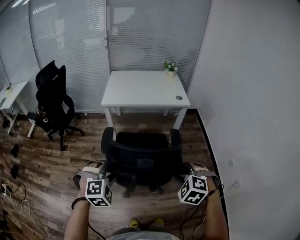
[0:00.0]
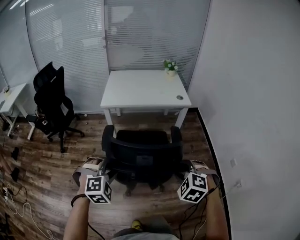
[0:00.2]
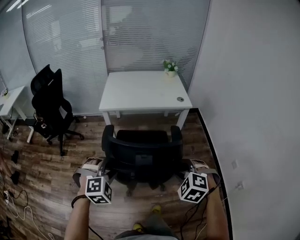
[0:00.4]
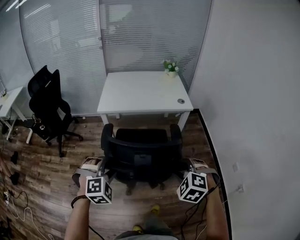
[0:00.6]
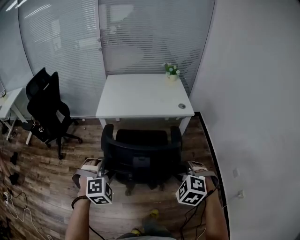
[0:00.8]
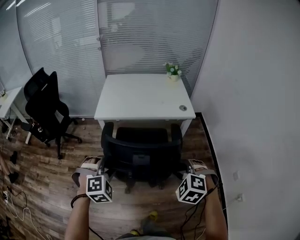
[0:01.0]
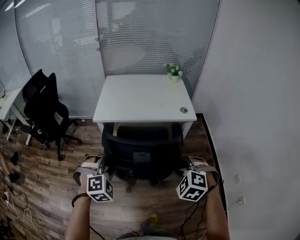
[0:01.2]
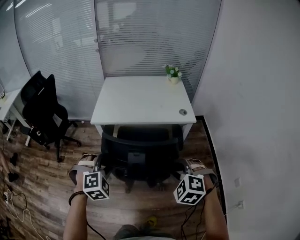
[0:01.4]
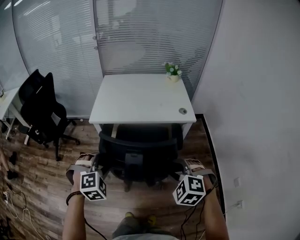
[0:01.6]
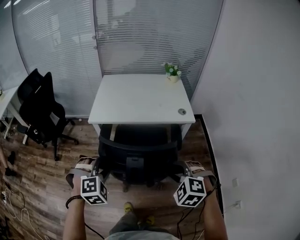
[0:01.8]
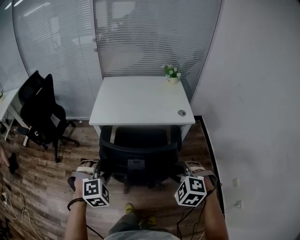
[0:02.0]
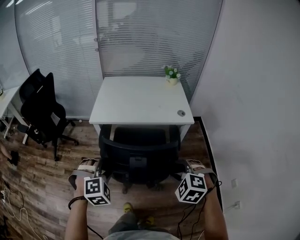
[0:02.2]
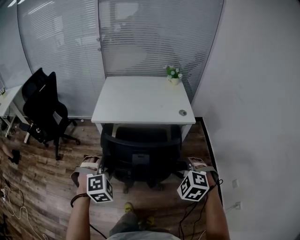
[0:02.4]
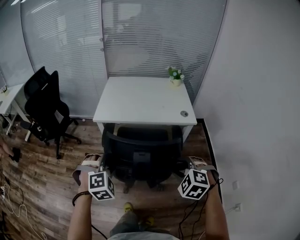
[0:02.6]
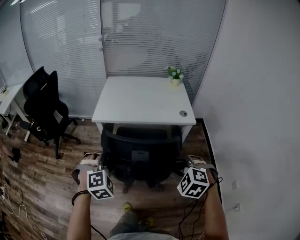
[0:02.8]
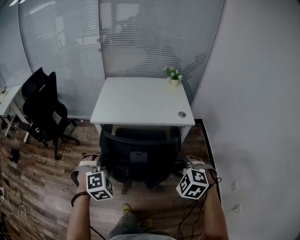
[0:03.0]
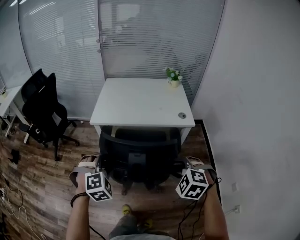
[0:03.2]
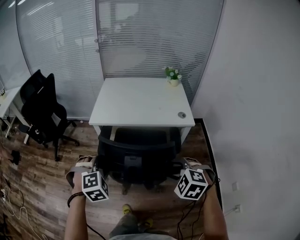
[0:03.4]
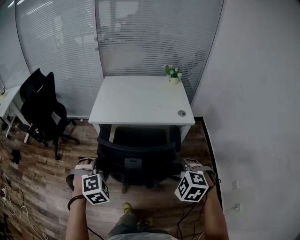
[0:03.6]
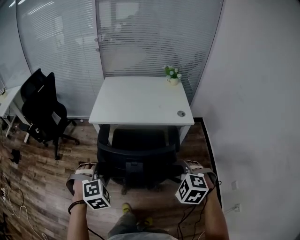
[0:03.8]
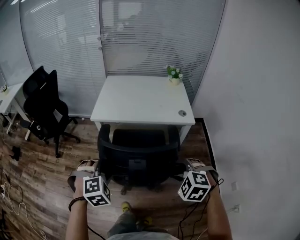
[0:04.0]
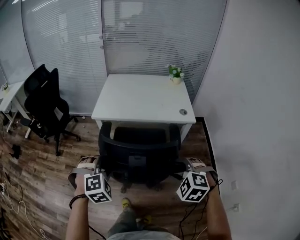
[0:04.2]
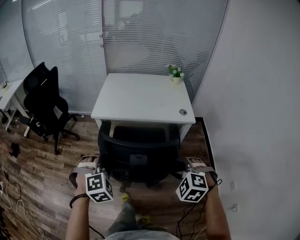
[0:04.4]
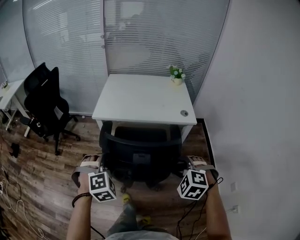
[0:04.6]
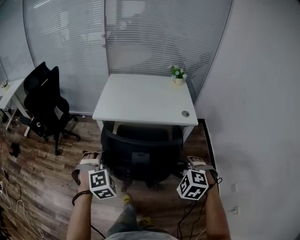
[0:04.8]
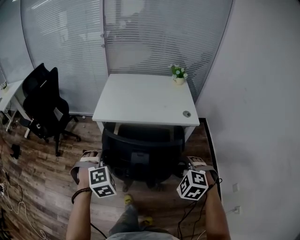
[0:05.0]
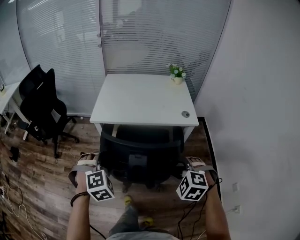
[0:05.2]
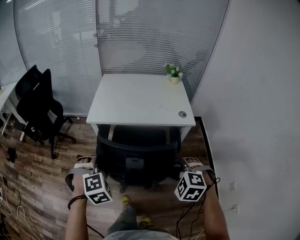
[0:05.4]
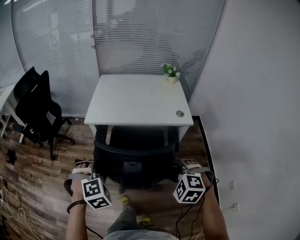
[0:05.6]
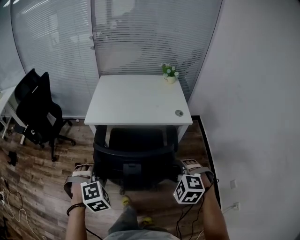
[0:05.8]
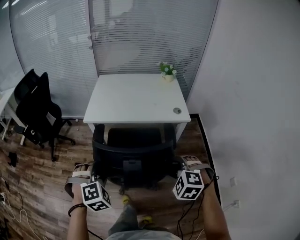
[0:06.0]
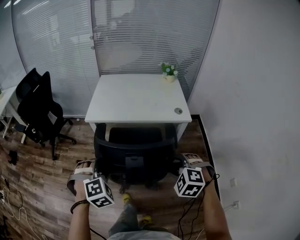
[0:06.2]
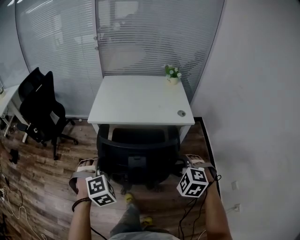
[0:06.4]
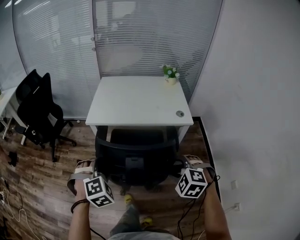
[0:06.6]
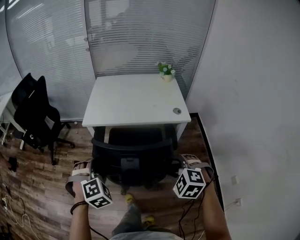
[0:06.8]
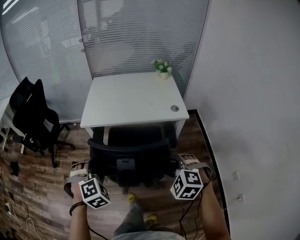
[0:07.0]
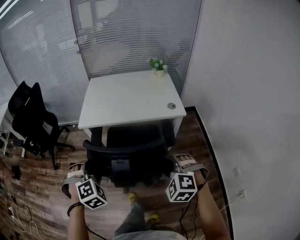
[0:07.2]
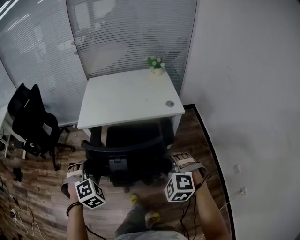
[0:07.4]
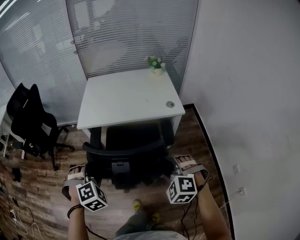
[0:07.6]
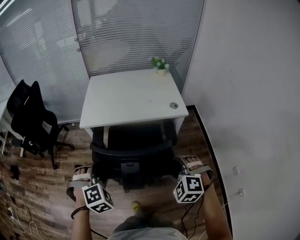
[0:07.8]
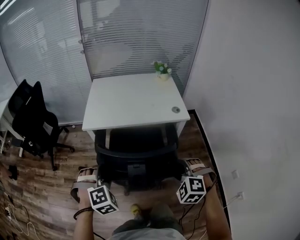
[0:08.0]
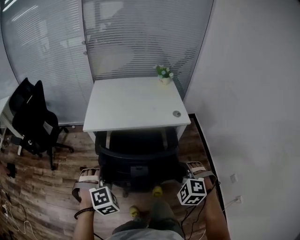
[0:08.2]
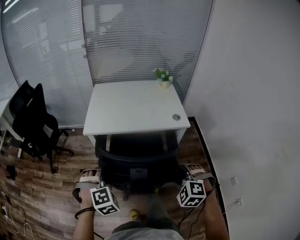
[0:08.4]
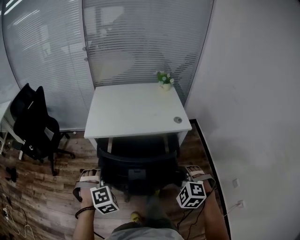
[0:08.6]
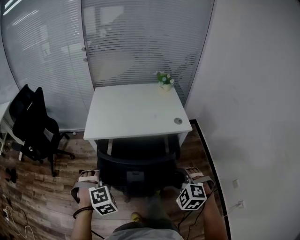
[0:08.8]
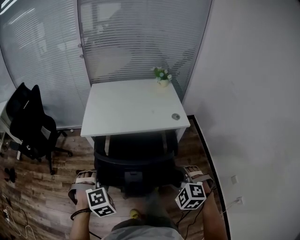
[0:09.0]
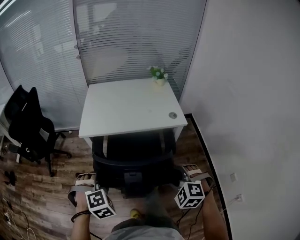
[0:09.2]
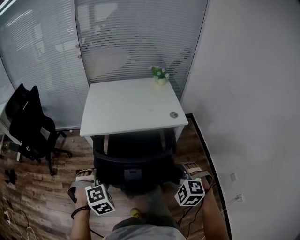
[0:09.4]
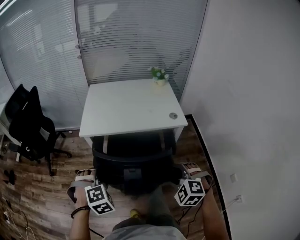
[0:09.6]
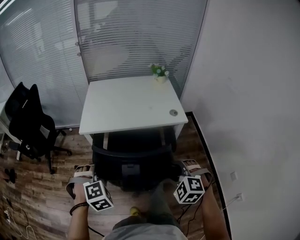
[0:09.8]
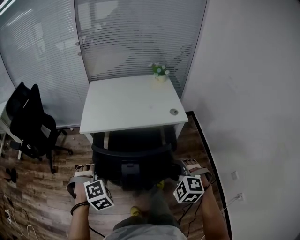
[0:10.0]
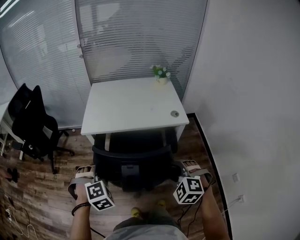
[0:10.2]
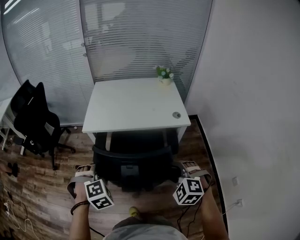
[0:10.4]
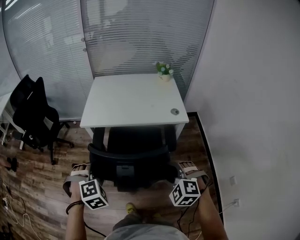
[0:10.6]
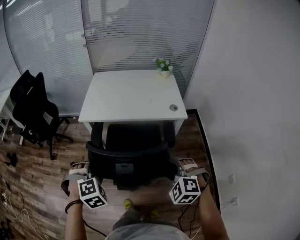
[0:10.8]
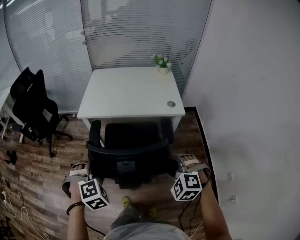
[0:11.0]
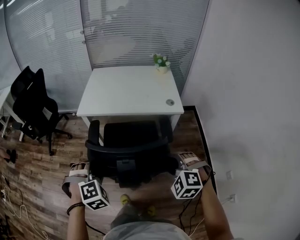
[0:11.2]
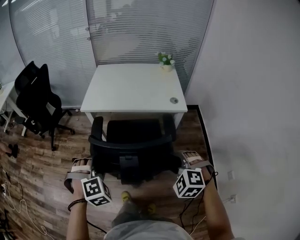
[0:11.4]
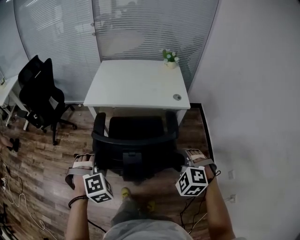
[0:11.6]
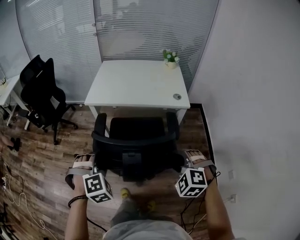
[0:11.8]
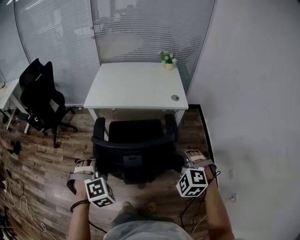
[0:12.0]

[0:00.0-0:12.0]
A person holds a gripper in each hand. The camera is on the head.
0:00.0 to 0:01.6: The two grippers go some 30 cm forward.
0:01.6 to 0:03.0: The grippers stay close to where they were, moving slightly.
0:03.0 to 0:04.4: The grippers make only small movements.
0:06.0 to 0:07.6: There are only small adjustments of the grippers.
0:07.6 to 0:10.4: The grippers make only small movements.
0:10.4 to 0:12.0: The grippers both shift backward by approximately 15 cm.

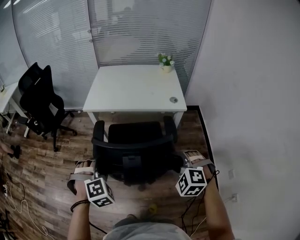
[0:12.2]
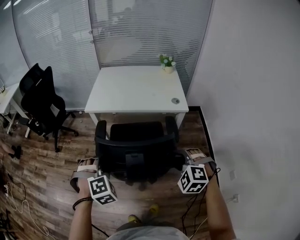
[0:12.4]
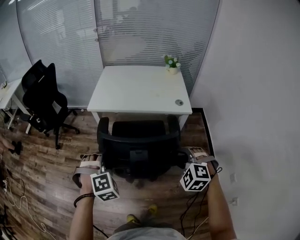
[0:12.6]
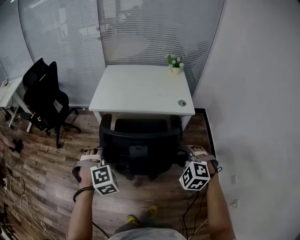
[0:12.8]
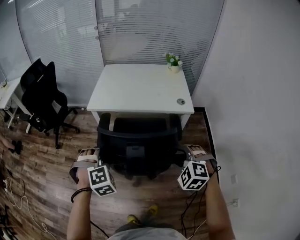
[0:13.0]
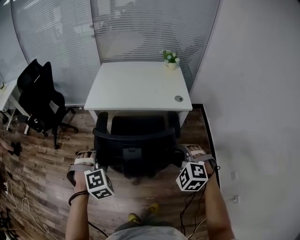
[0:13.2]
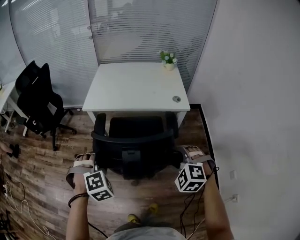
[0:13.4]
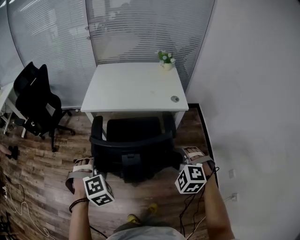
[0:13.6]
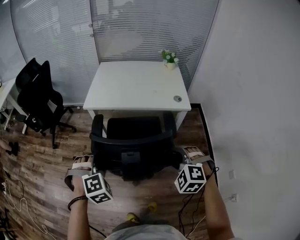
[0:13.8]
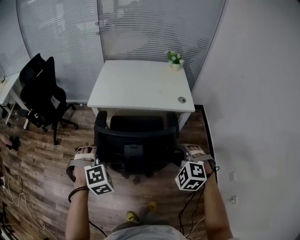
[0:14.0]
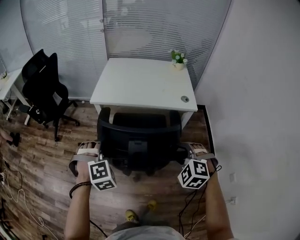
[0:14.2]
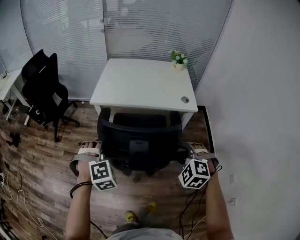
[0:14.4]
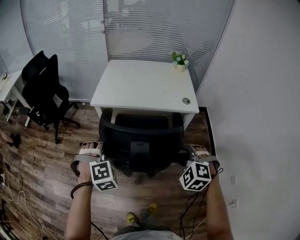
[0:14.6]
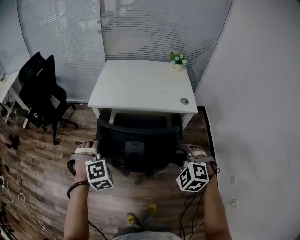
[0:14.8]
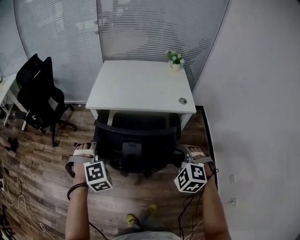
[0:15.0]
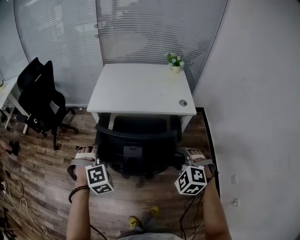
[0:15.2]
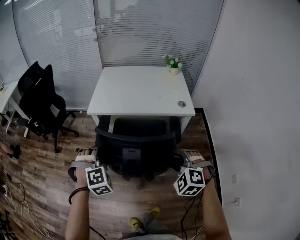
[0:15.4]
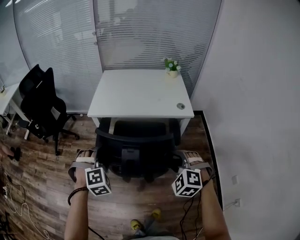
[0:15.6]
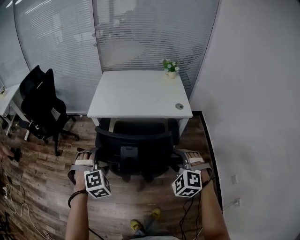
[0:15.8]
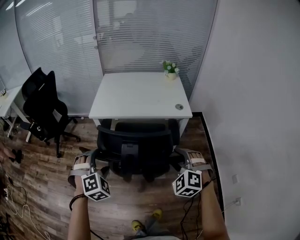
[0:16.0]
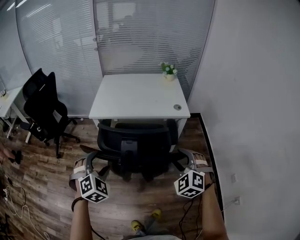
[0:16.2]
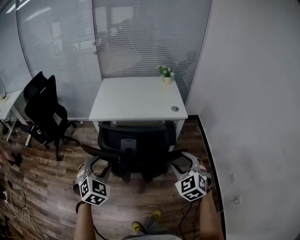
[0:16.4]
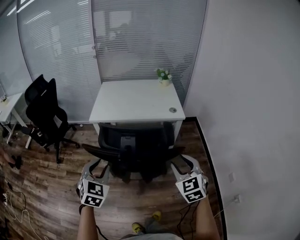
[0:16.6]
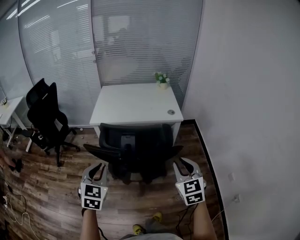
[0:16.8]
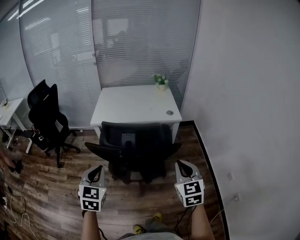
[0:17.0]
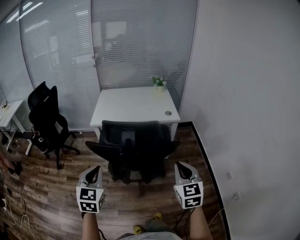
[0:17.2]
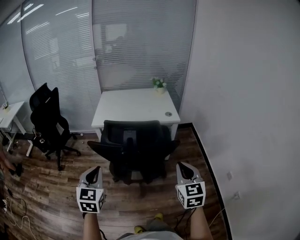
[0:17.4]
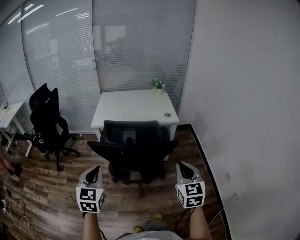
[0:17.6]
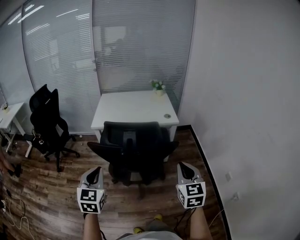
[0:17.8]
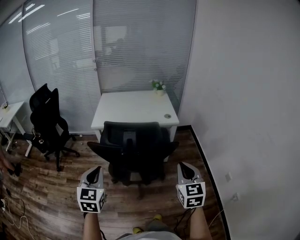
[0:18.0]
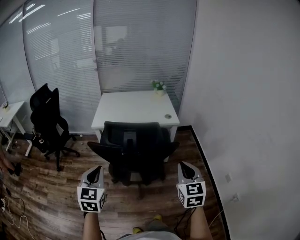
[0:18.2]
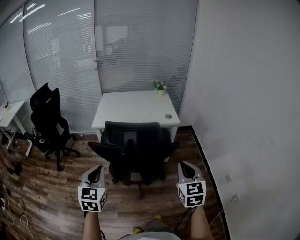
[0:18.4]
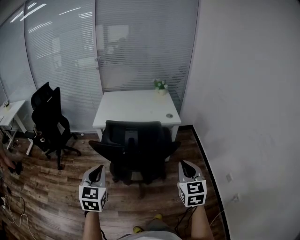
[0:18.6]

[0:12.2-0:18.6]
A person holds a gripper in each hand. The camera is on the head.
0:12.2 to 0:13.8: Both grippers travel together forward, approximately 5 cm.
0:13.8 to 0:15.4: The left gripper travels forward by about 5 cm.
0:15.4 to 0:17.0: Both grippers travel together backward and upward, approximately 20 cm. The left gripper twists approximately 60 degrees counterclockwise, seen from behind, and closes its fingers. Meanwhile the right gripper rotates around the line of its fingers by roughly 50 degrees, clockwise from behind, and closes its fingers.
0:17.0 to 0:18.6: There are only small adjustments of the grippers.

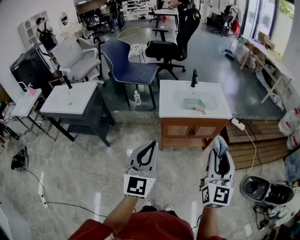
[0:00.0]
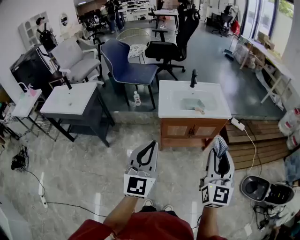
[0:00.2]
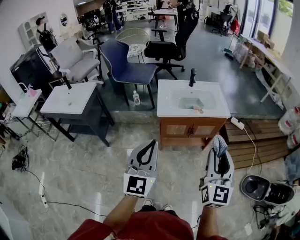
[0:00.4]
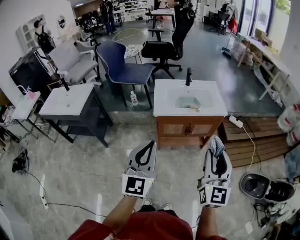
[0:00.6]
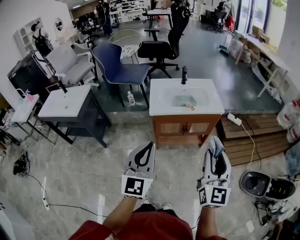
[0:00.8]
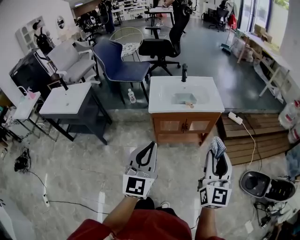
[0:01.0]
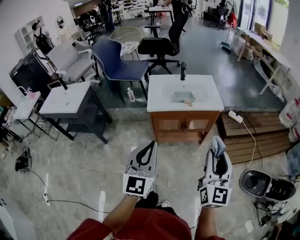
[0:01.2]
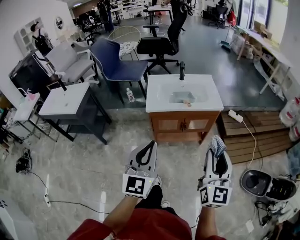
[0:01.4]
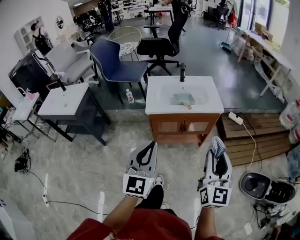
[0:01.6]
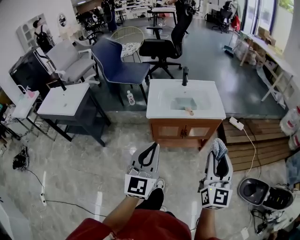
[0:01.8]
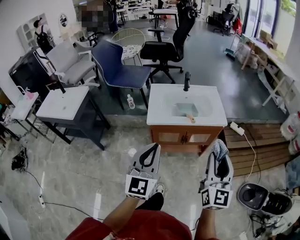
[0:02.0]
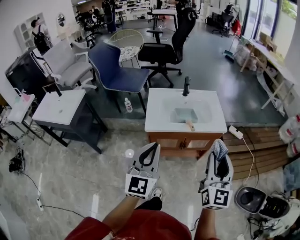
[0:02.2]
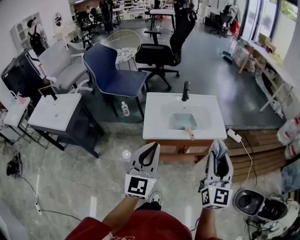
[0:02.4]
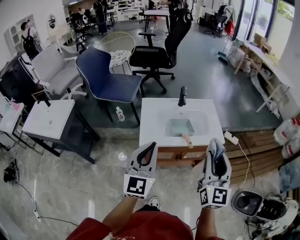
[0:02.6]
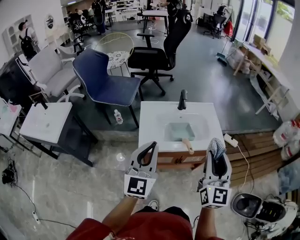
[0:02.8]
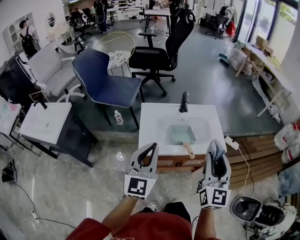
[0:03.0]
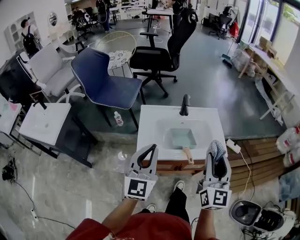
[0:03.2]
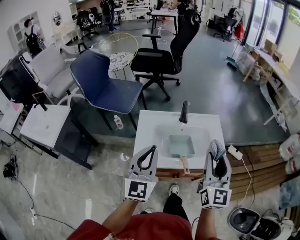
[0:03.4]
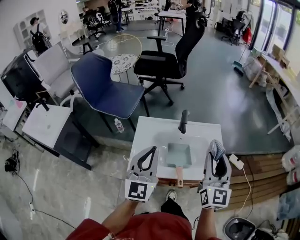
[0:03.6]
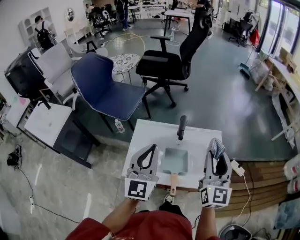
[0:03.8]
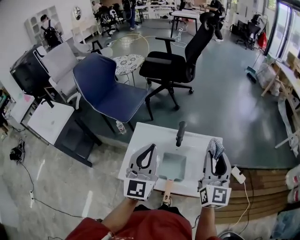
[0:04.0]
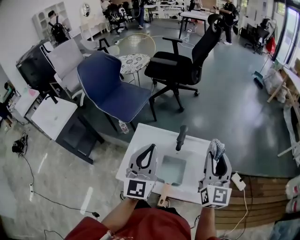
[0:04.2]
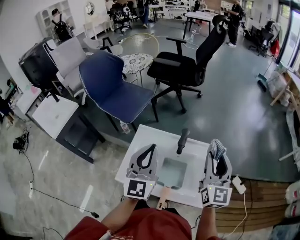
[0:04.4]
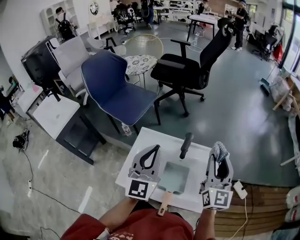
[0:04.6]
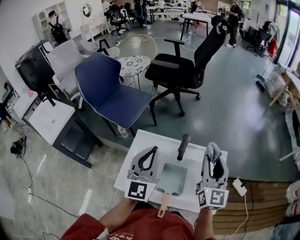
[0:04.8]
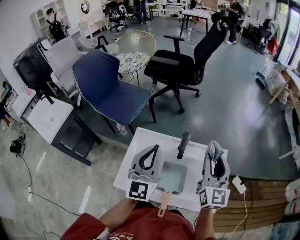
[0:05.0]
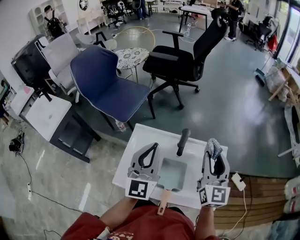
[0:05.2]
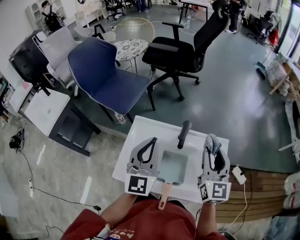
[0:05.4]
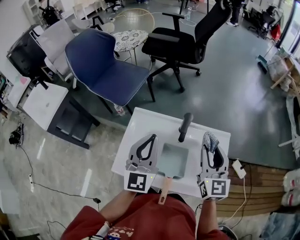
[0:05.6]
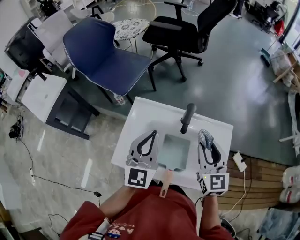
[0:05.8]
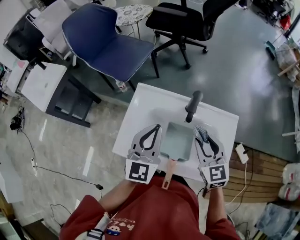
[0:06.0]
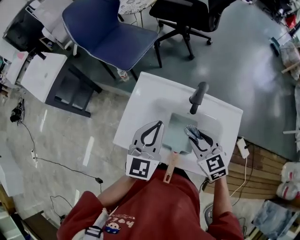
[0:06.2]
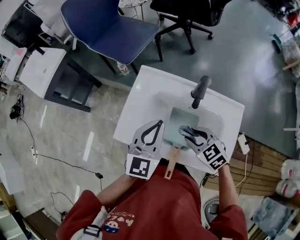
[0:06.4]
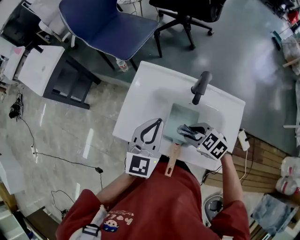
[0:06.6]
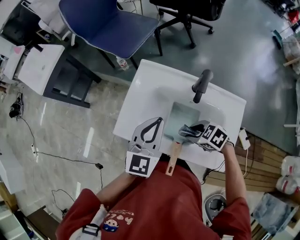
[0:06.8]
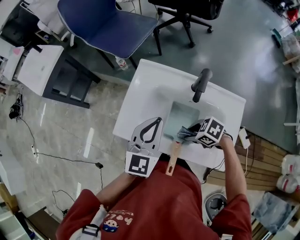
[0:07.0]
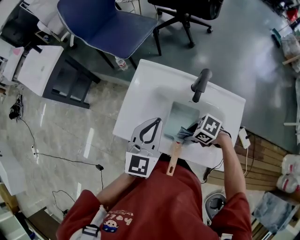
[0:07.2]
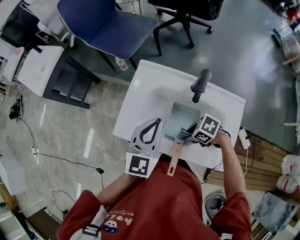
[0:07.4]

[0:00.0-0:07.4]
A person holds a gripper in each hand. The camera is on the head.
0:00.0 to 0:01.4: Both grippers travel together to the right, approximately 10 cm.
0:01.4 to 0:03.0: Both grippers move forward, approximately 30 cm.
0:03.0 to 0:04.4: The right gripper travels forward by some 35 cm, and changes its angle by some 20 degrees; the left gripper travels forward and to the right by approximately 25 cm, and rotates approximately 20 degrees.
0:04.4 to 0:06.0: The right gripper is displaced downward and to the left by approximately 20 cm, and changes its angle by approximately 40 degrees, while the left gripper travels downward by roughly 10 cm.
0:06.0 to 0:07.4: The left gripper ends up some 5 cm from where it was. The right gripper shifts some 20 cm downward, and tips its fingers downward by about 40 degrees.
